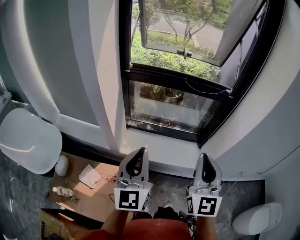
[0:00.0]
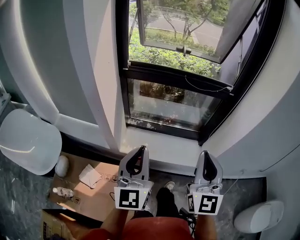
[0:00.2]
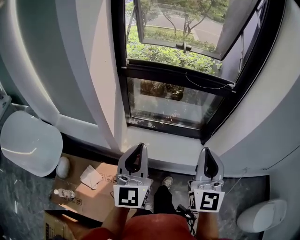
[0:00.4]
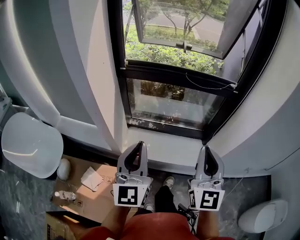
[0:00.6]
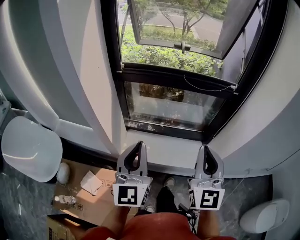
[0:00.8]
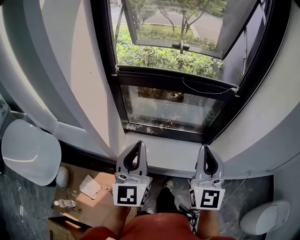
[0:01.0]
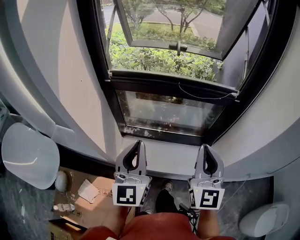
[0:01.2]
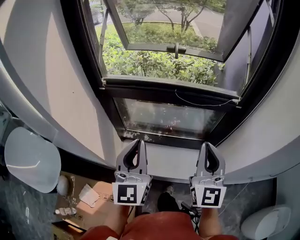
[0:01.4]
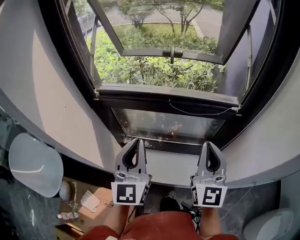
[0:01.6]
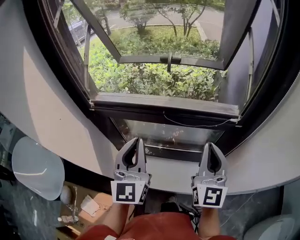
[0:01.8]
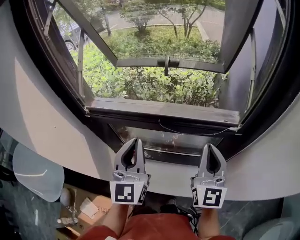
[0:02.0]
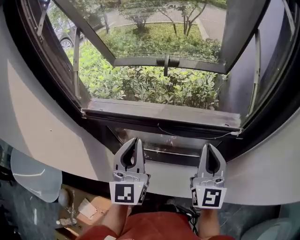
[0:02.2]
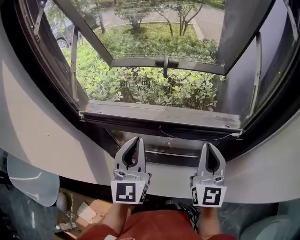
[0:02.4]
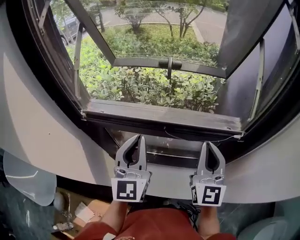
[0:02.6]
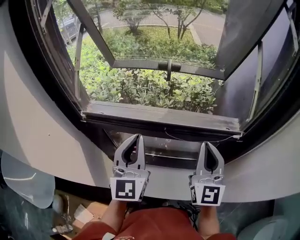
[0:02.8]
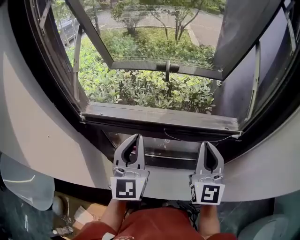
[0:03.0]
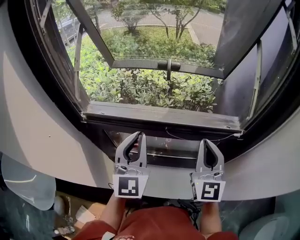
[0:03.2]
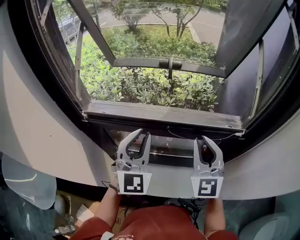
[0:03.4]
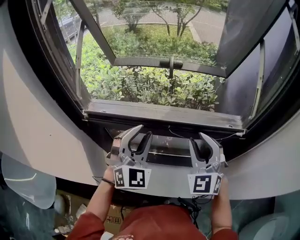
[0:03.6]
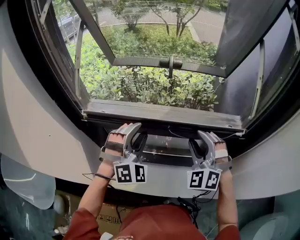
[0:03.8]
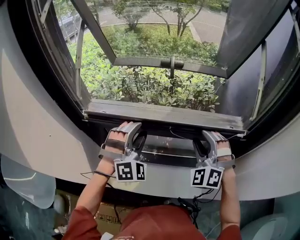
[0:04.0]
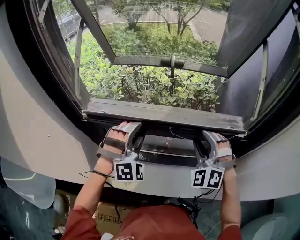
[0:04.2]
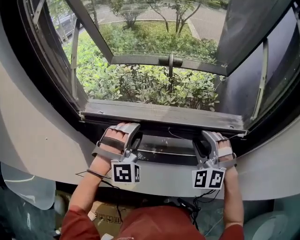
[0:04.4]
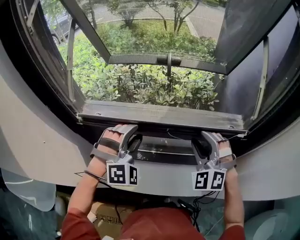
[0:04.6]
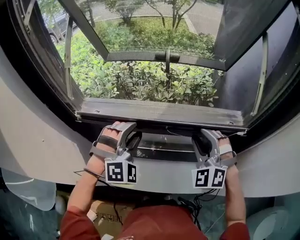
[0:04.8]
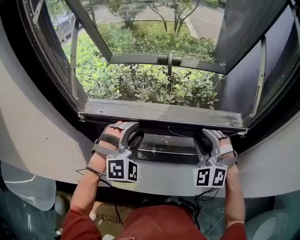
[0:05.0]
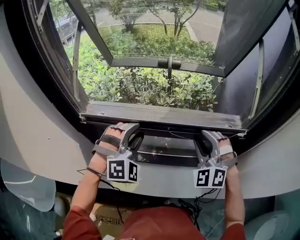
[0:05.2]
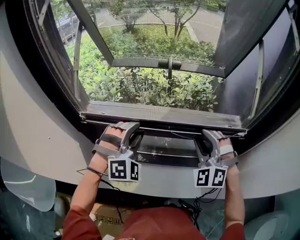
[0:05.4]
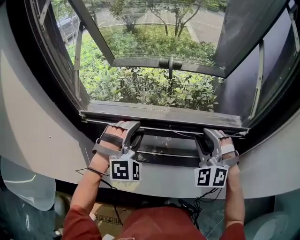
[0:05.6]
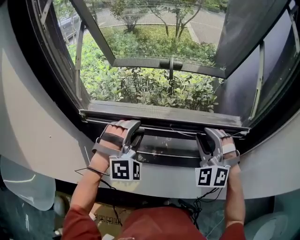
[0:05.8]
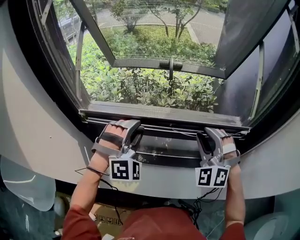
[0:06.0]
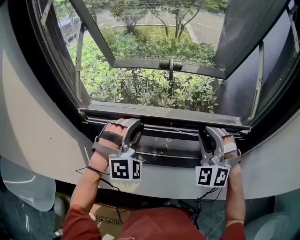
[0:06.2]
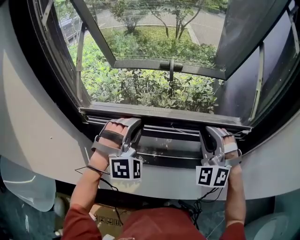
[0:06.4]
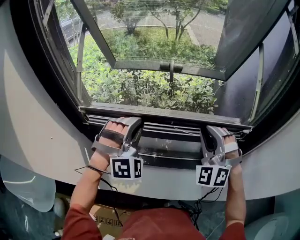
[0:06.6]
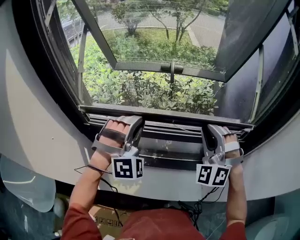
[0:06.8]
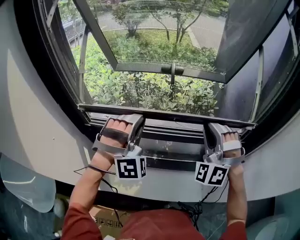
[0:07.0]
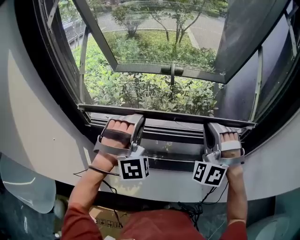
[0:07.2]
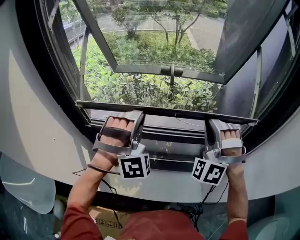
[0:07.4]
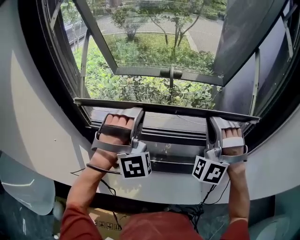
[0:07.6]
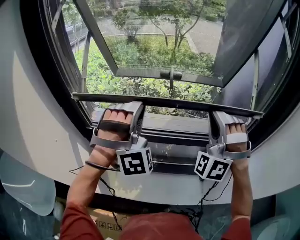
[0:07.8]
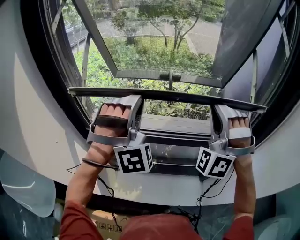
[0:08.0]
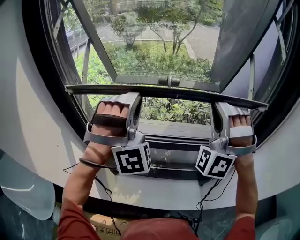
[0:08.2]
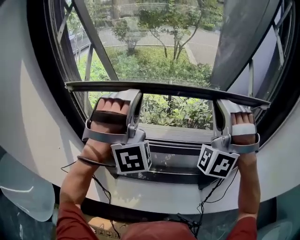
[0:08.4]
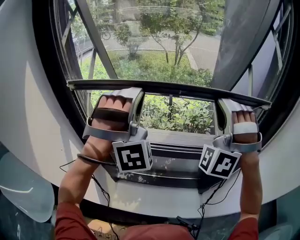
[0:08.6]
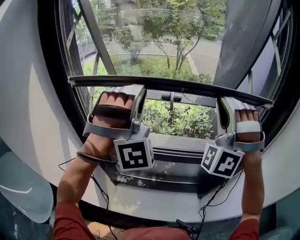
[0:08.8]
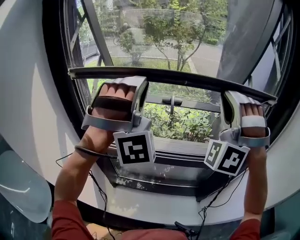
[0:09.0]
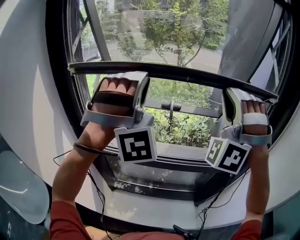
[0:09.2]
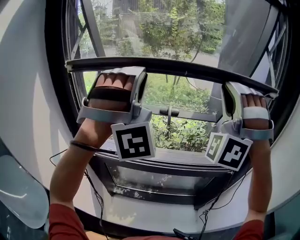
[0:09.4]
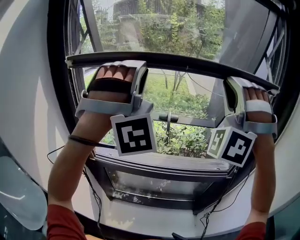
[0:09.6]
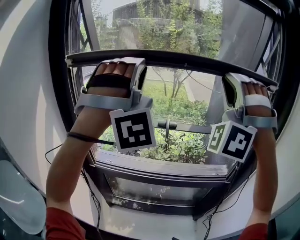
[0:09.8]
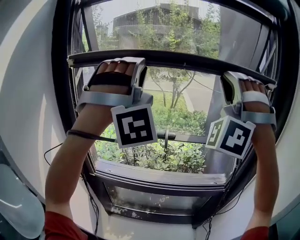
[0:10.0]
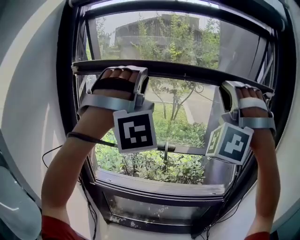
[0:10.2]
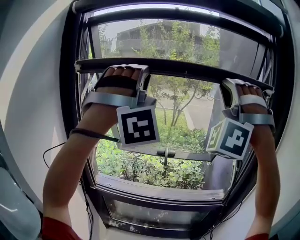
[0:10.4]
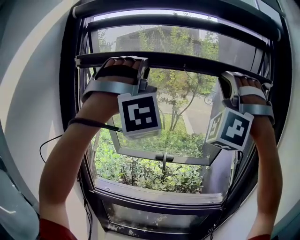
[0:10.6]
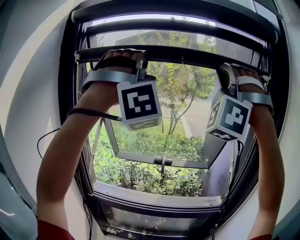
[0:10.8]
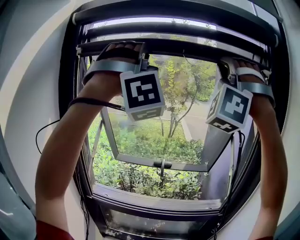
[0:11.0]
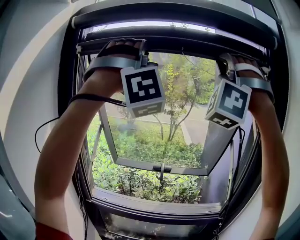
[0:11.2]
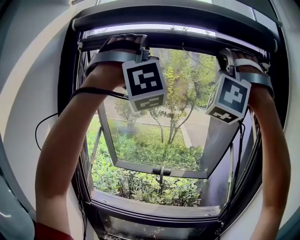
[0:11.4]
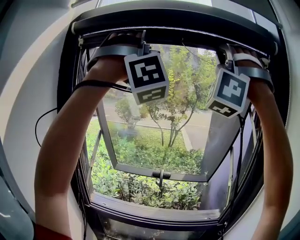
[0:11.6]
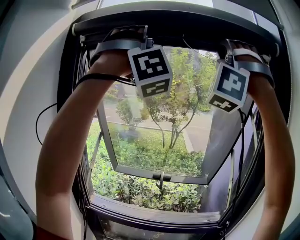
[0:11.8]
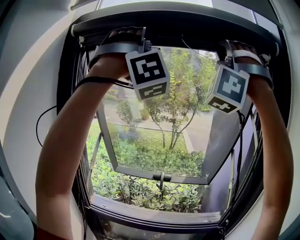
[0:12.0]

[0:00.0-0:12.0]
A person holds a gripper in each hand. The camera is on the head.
0:00.0 to 0:01.6: The two grippers go some 25 cm forward.
0:01.6 to 0:03.0: Both grippers travel together forward, about 15 cm.
0:03.0 to 0:04.4: Both grippers move downward and forward, approximately 10 cm. The left gripper rotates around the line of its fingers by approximately 80 degrees, clockwise from behind, and opens its fingers, while the right gripper rolls counterclockwise, seen from behind, by roughly 60 degrees, and opens.
0:04.4 to 0:06.0: The grippers make only small movements.
0:06.0 to 0:07.6: The grippers both shift upward by some 10 cm. The left gripper closes up. Meanwhile the right gripper turns by approximately 30 degrees, and closes.
0:07.6 to 0:09.0: The grippers both shift upward by roughly 20 cm.
0:09.0 to 0:10.4: The two grippers go about 20 cm upward.
0:10.4 to 0:12.0: Both grippers move upward, some 20 cm.

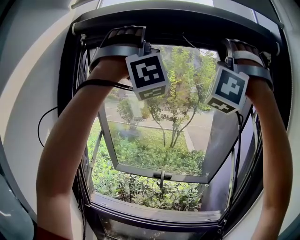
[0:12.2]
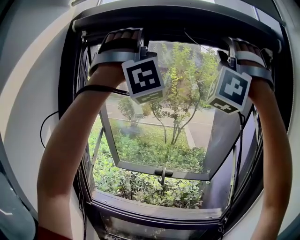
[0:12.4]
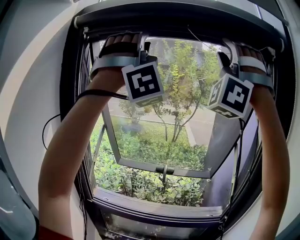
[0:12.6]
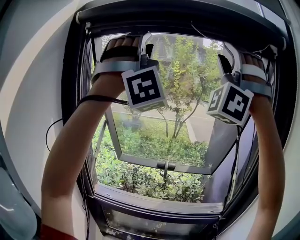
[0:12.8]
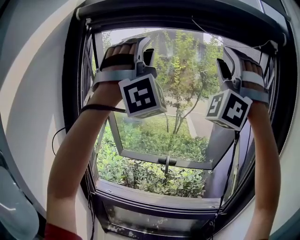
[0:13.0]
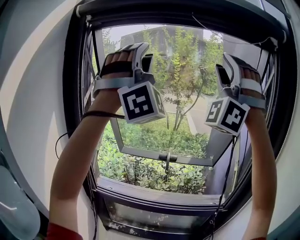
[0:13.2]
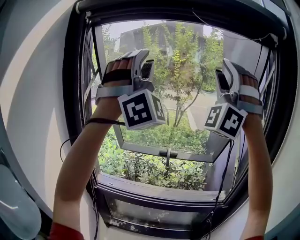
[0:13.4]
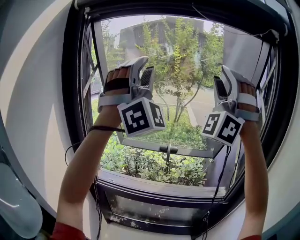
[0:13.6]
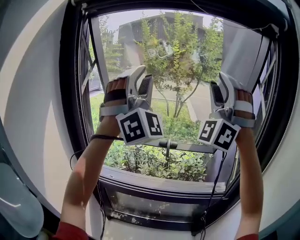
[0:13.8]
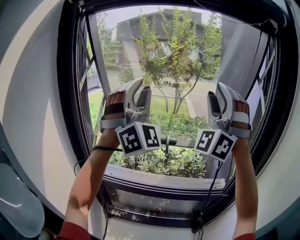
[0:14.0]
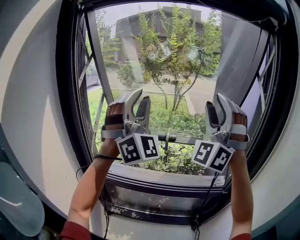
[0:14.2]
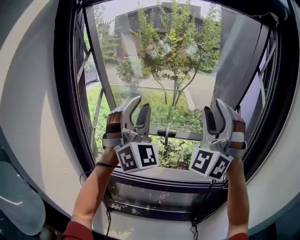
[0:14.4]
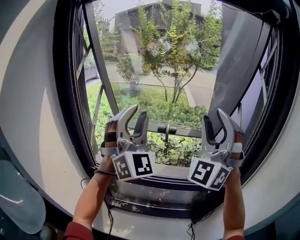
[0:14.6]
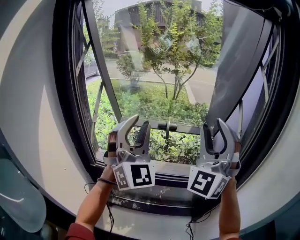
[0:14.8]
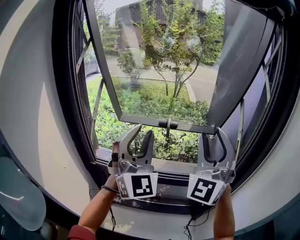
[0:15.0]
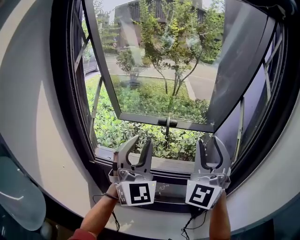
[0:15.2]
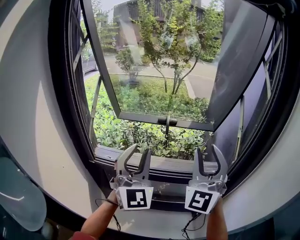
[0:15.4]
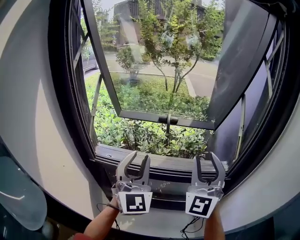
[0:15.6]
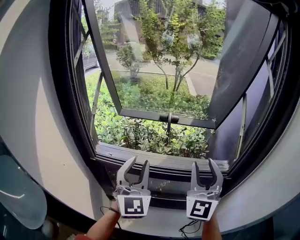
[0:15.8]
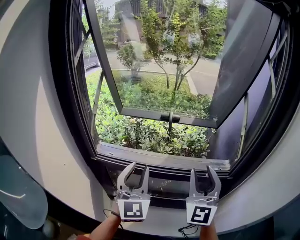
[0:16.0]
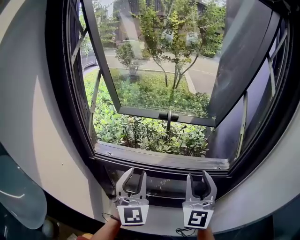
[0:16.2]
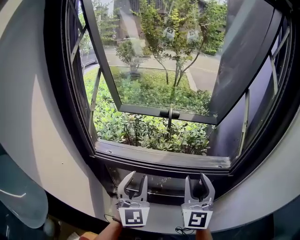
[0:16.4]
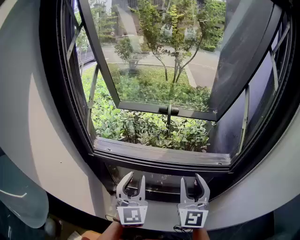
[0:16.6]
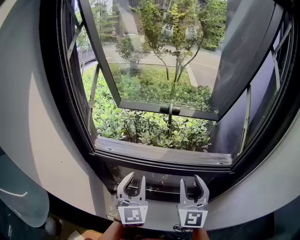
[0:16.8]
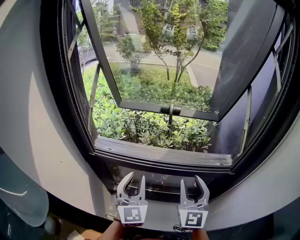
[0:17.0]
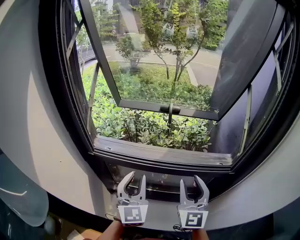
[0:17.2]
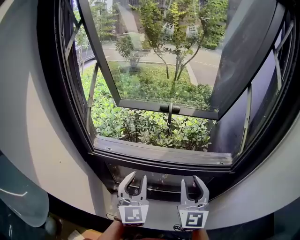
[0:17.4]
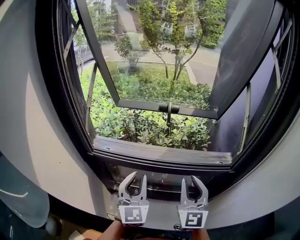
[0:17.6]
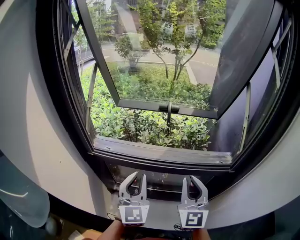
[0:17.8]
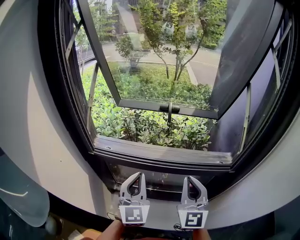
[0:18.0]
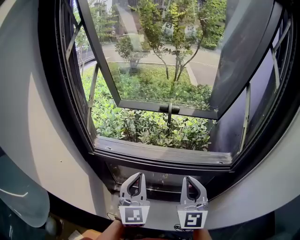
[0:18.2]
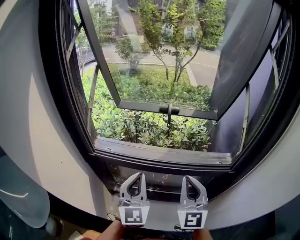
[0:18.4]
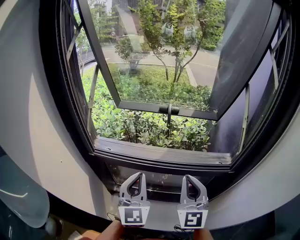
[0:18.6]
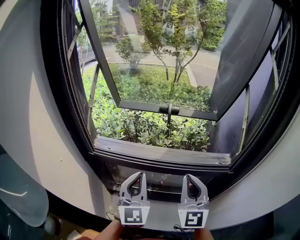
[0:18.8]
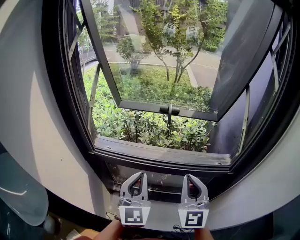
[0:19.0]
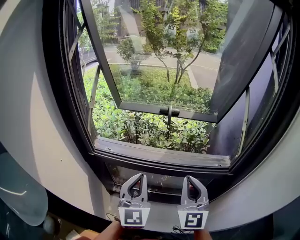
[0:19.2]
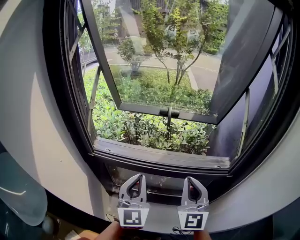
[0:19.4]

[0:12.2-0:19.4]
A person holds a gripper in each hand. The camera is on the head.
0:12.2 to 0:13.6: The two grippers go roughly 15 cm downward. The left gripper swivels about 30 degrees.
0:13.6 to 0:15.0: Both grippers move downward, about 25 cm. The right gripper rotates around the line of its fingers by approximately 40 degrees, clockwise from behind, while the left gripper changes its angle by roughly 40 degrees.
0:15.0 to 0:16.6: Both grippers move downward, roughly 20 cm. The left gripper swivels approximately 30 degrees. The right gripper rotates approximately 40 degrees.
0:16.6 to 0:18.0: The right gripper closes; the left gripper closes up.
0:18.0 to 0:19.4: There are only small adjustments of the grippers.

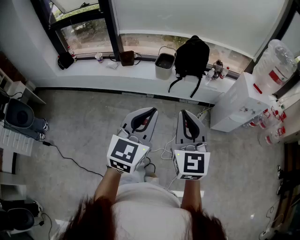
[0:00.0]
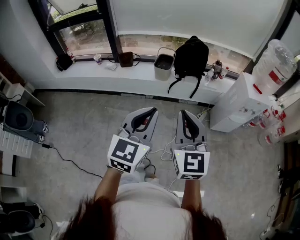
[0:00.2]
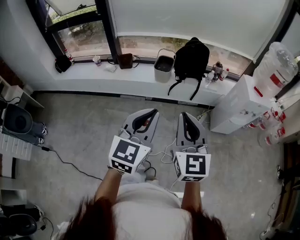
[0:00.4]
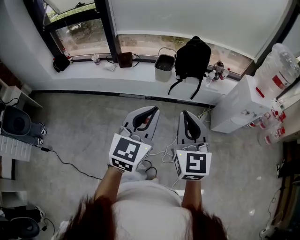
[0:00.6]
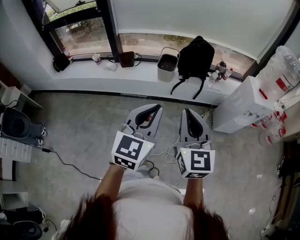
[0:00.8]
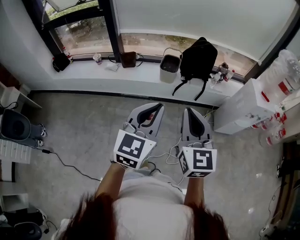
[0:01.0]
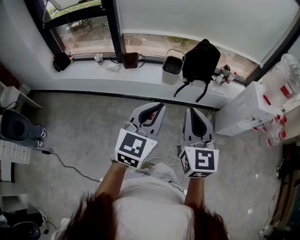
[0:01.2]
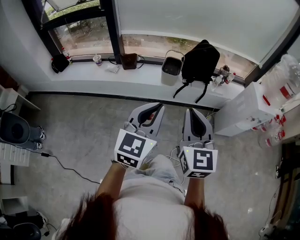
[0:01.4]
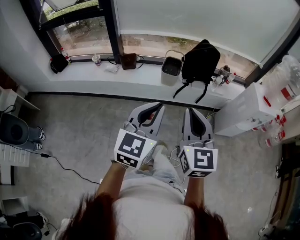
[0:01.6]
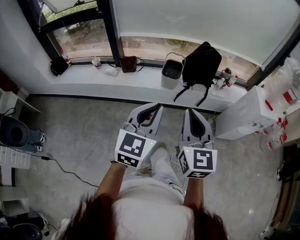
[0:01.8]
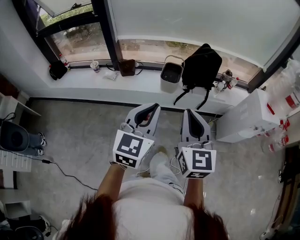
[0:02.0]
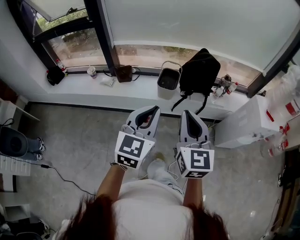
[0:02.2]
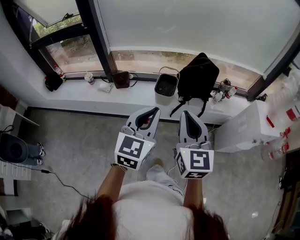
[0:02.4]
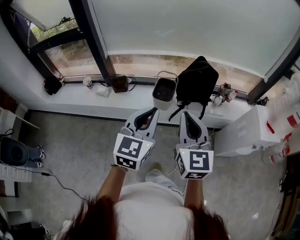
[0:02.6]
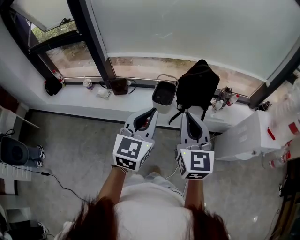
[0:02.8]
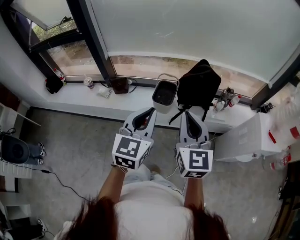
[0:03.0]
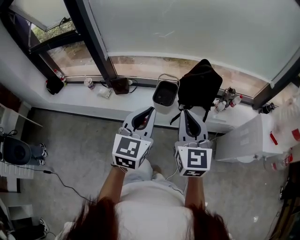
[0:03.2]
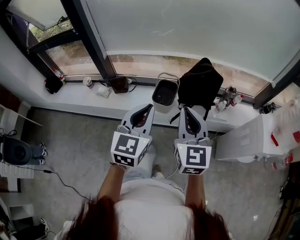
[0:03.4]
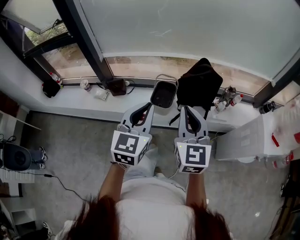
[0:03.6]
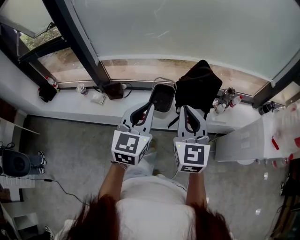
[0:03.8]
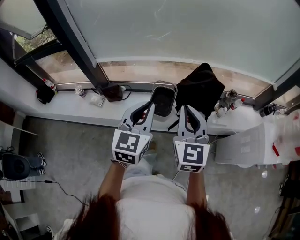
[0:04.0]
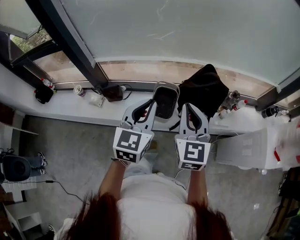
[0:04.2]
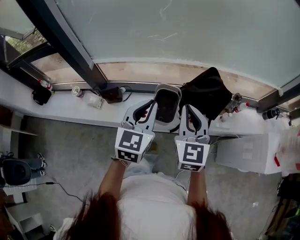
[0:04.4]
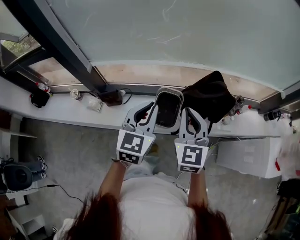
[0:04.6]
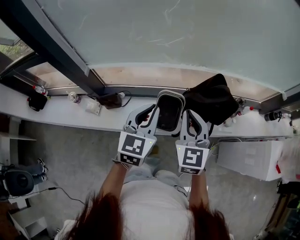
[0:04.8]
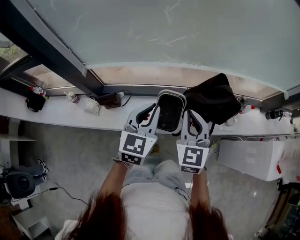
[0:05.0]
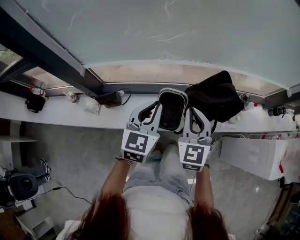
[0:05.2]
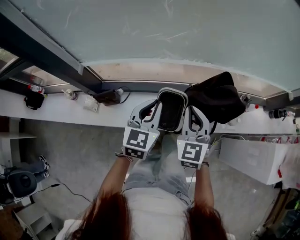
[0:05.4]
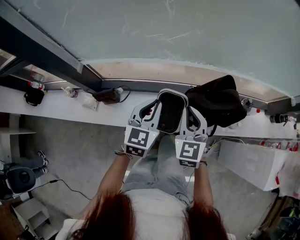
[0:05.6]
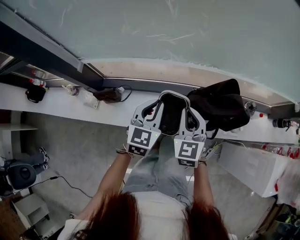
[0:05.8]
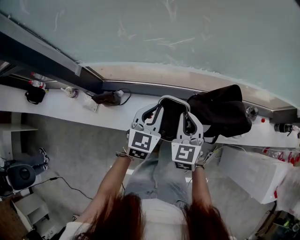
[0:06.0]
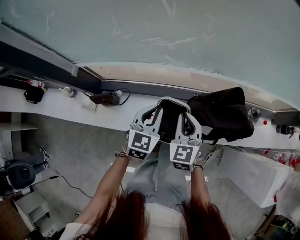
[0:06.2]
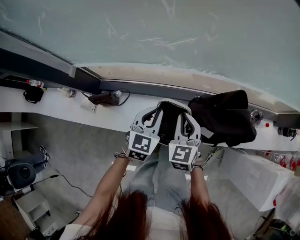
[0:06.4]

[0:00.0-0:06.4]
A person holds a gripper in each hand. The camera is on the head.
0:00.0 to 0:01.6: Both grippers travel together forward and to the left, about 20 cm.
0:01.6 to 0:03.2: The grippers both shift forward by approximately 30 cm.
0:03.2 to 0:04.8: Both grippers travel together forward, some 30 cm.
0:04.8 to 0:06.4: Both grippers move downward and forward, about 25 cm.
